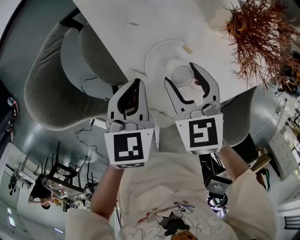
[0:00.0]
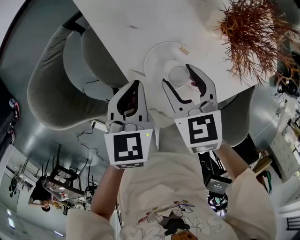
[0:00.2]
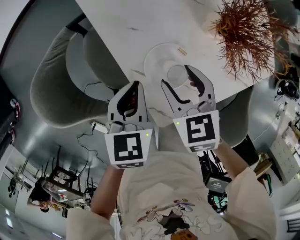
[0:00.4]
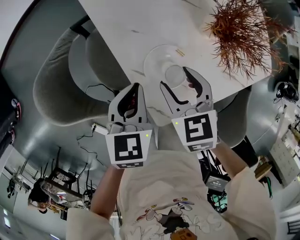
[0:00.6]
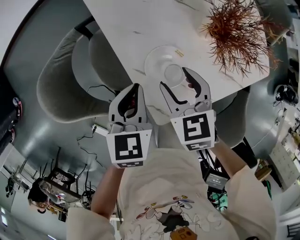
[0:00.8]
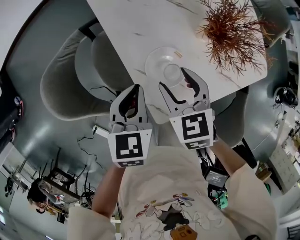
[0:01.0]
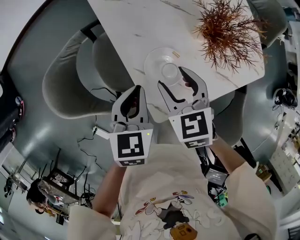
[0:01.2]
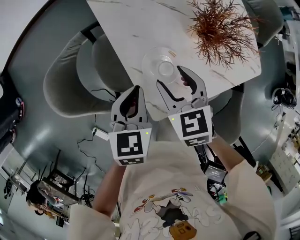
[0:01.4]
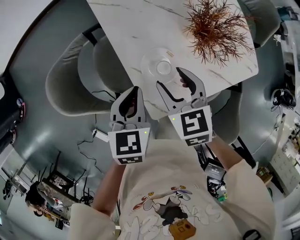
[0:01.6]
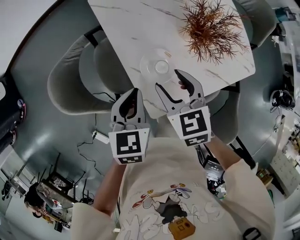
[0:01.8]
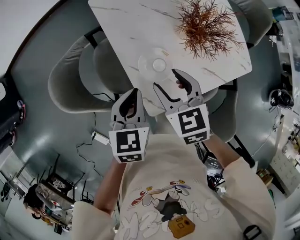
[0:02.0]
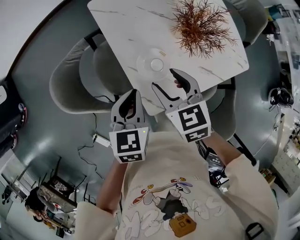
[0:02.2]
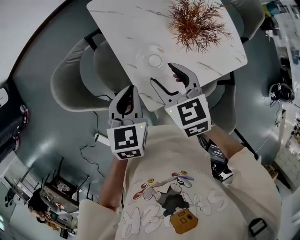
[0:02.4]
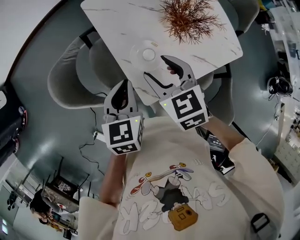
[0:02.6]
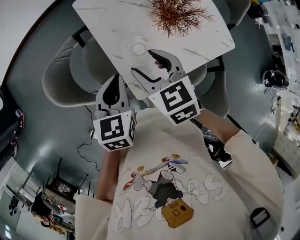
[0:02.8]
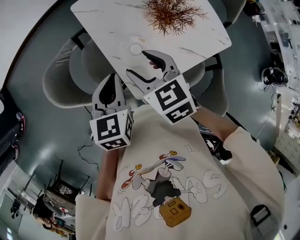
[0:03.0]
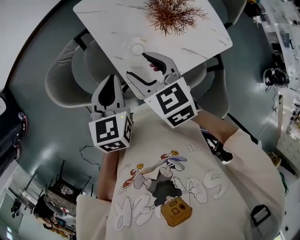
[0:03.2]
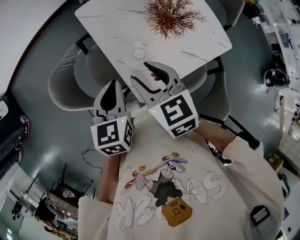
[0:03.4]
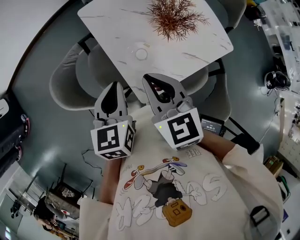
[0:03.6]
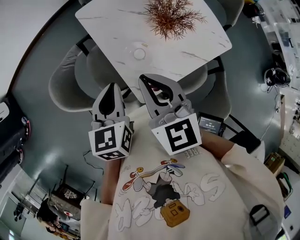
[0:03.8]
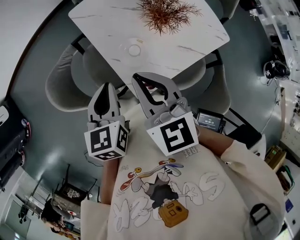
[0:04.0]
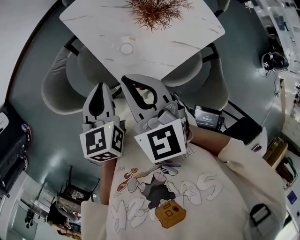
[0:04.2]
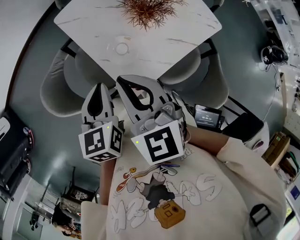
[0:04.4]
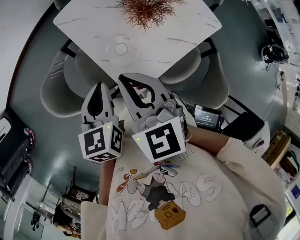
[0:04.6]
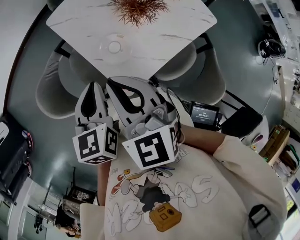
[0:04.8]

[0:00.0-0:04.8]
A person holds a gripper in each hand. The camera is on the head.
0:00.0 to 0:01.6: Both grippers travel together upward, roughly 10 cm.
0:01.6 to 0:03.2: Both grippers travel together upward, about 10 cm.
0:03.2 to 0:04.8: The right gripper is displaced upward by about 10 cm, changes its angle by approximately 20 degrees, and closes.

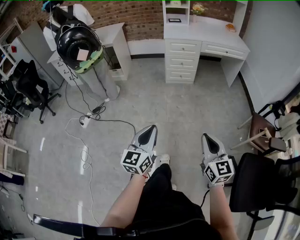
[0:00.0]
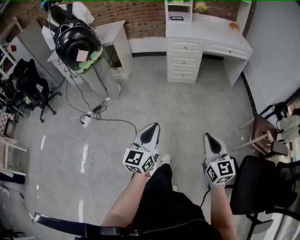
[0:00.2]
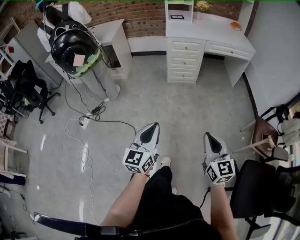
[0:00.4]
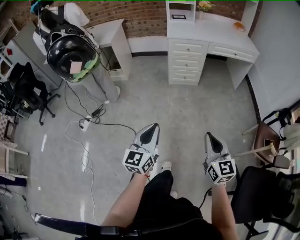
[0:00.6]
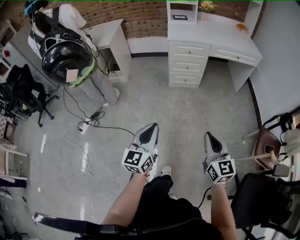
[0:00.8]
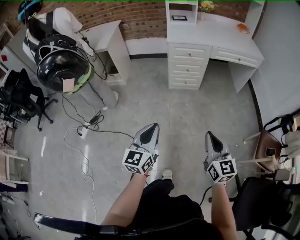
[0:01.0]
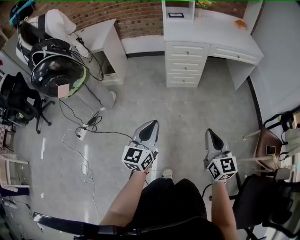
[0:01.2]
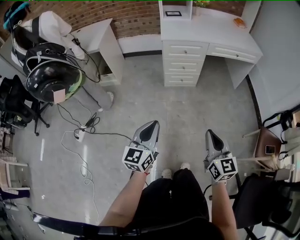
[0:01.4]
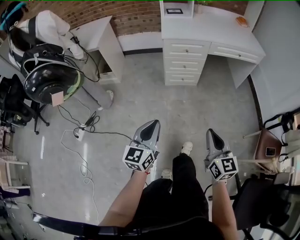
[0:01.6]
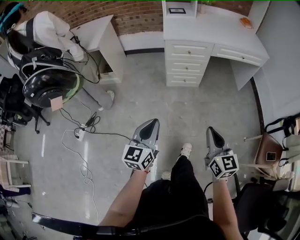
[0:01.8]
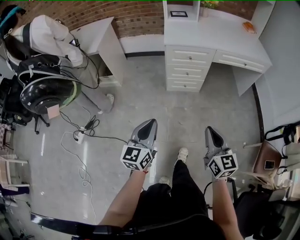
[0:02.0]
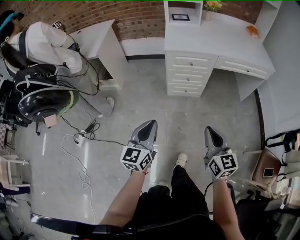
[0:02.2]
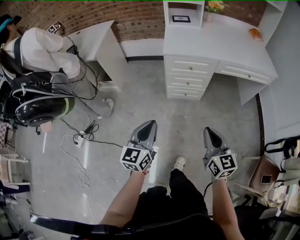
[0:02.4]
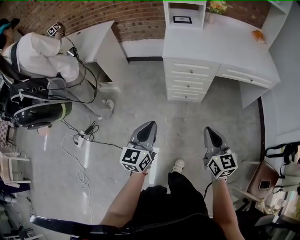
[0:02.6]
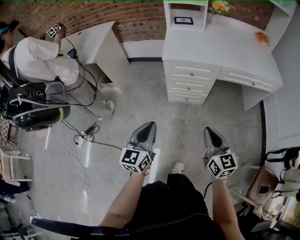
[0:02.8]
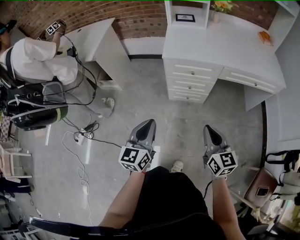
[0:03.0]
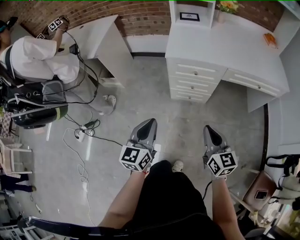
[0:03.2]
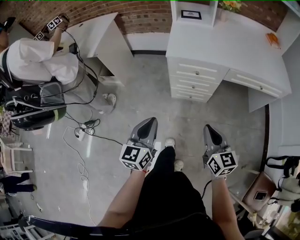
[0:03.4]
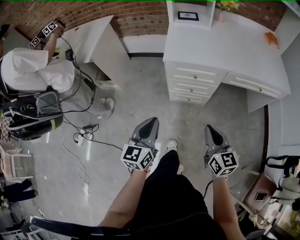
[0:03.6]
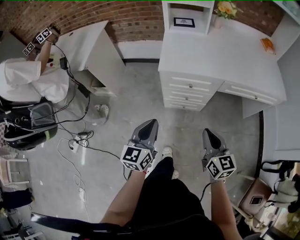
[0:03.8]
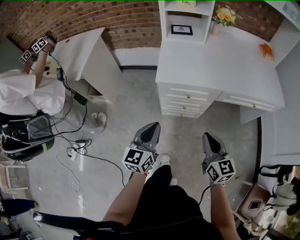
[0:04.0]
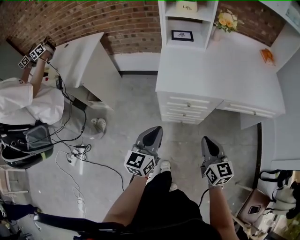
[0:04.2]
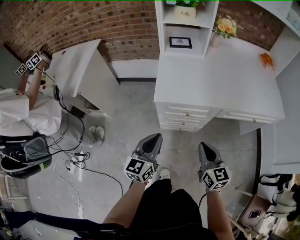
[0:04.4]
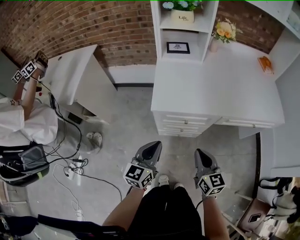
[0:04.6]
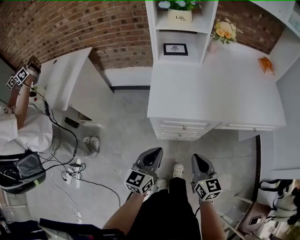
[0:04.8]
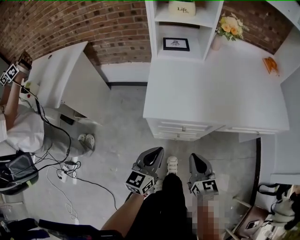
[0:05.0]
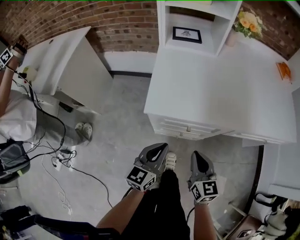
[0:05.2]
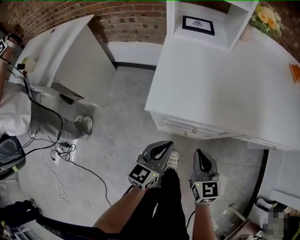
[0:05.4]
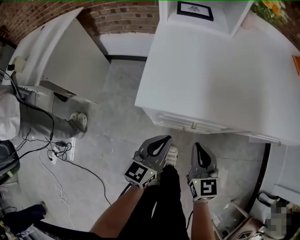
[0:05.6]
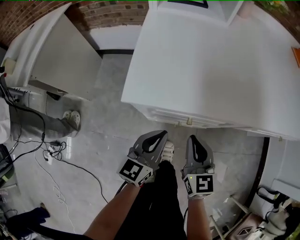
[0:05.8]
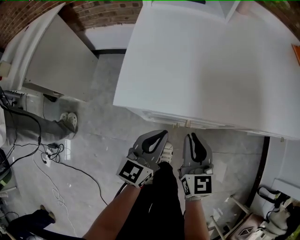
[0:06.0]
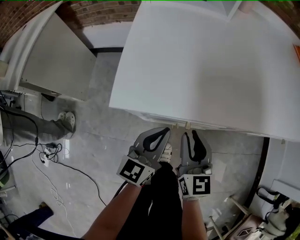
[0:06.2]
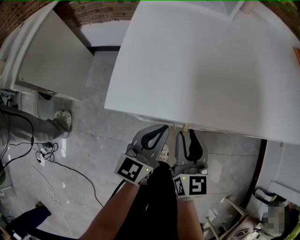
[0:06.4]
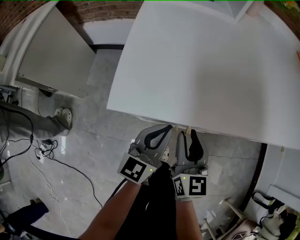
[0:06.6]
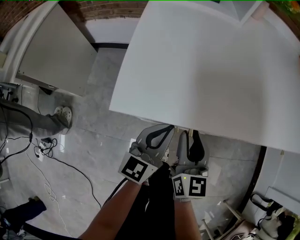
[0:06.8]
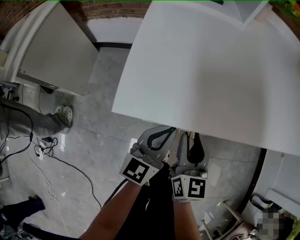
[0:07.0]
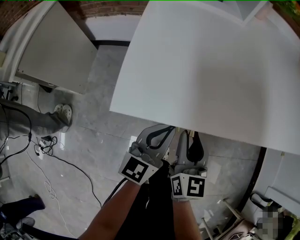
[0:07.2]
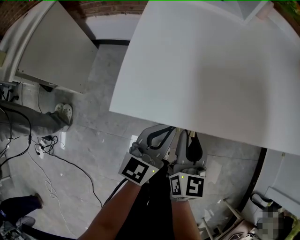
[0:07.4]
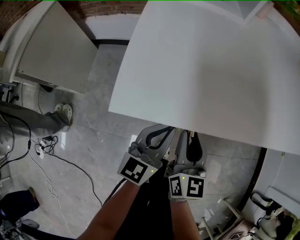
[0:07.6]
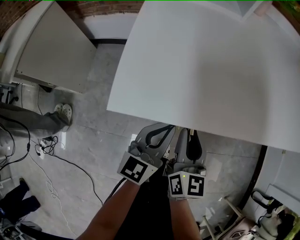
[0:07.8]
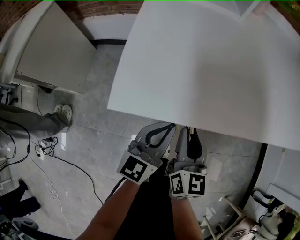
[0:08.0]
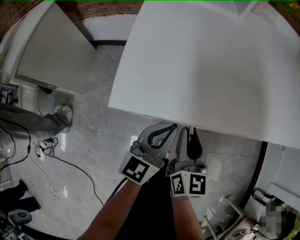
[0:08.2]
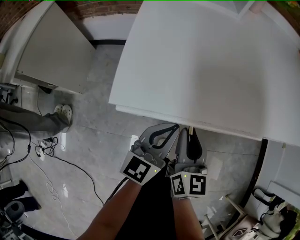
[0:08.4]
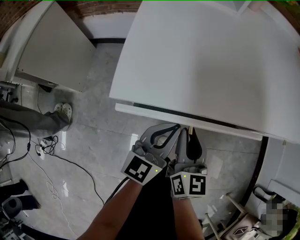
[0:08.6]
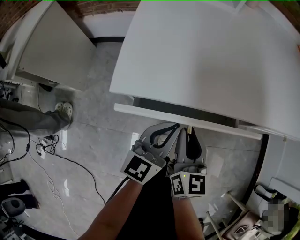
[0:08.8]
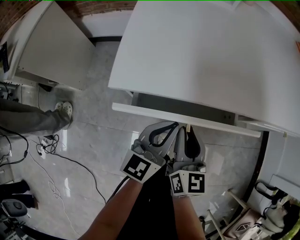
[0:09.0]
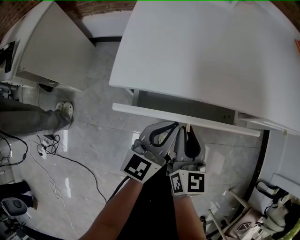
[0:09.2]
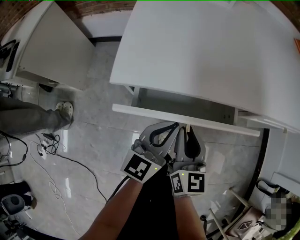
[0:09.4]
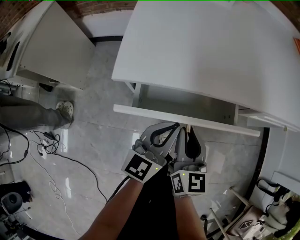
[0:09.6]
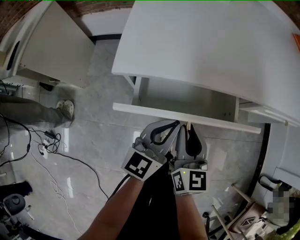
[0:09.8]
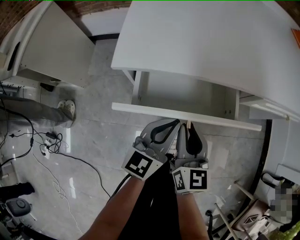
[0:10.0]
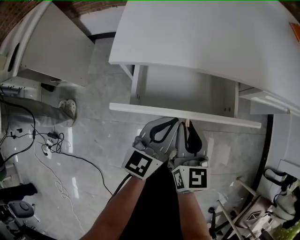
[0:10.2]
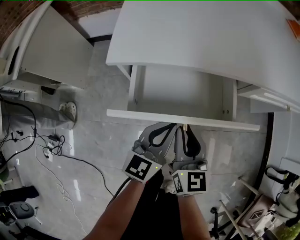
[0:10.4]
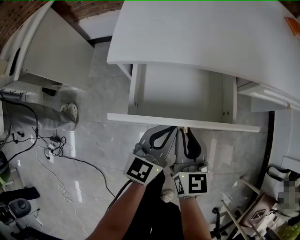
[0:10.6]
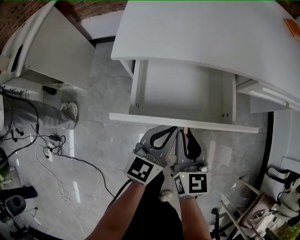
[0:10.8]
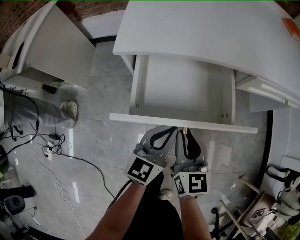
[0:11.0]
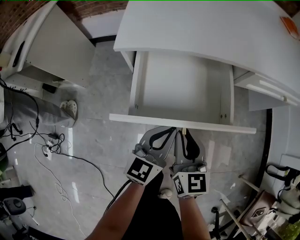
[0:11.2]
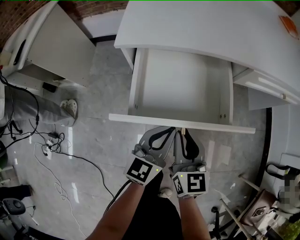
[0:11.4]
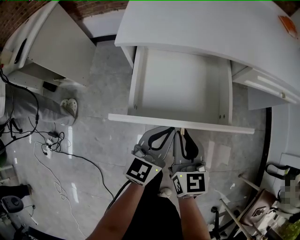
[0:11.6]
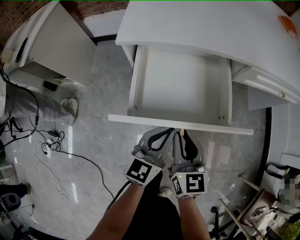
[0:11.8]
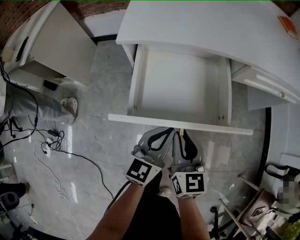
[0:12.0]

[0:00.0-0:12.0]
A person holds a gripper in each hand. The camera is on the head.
0:00.0 to 0:01.6: Both grippers travel together forward, approximately 30 cm.
0:01.6 to 0:03.0: The two grippers go about 30 cm forward.
0:03.0 to 0:04.4: The two grippers go about 20 cm forward.
0:04.4 to 0:06.0: The grippers both shift downward and forward by some 25 cm.
0:06.0 to 0:07.6: The grippers move only a little.
0:07.6 to 0:09.0: The right gripper changes place by approximately 5 cm. Meanwhile the left gripper shifts by roughly 5 cm.
0:09.0 to 0:10.4: The two grippers go roughly 5 cm backward.
0:10.4 to 0:12.0: The two grippers go approximately 10 cm backward.

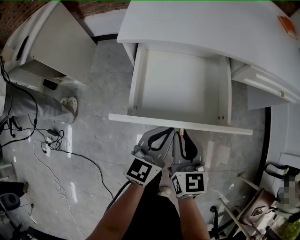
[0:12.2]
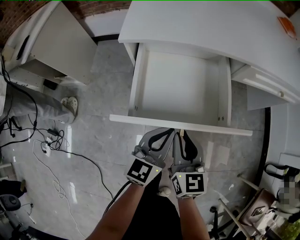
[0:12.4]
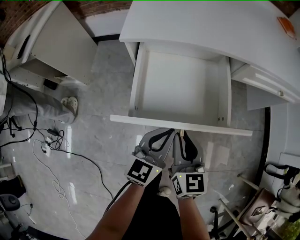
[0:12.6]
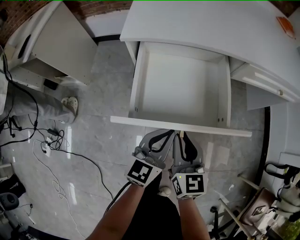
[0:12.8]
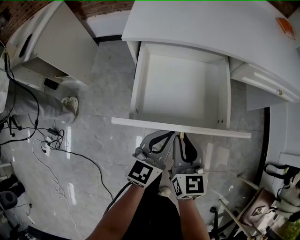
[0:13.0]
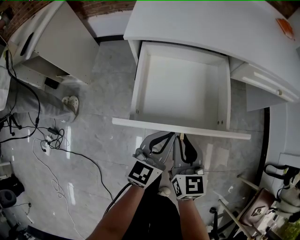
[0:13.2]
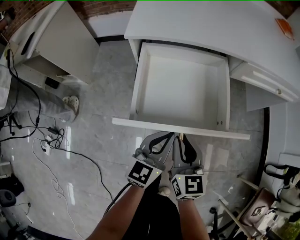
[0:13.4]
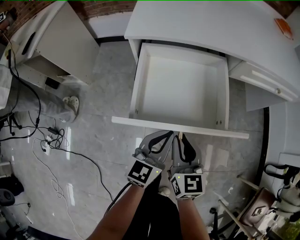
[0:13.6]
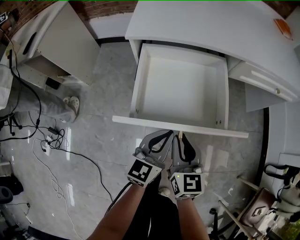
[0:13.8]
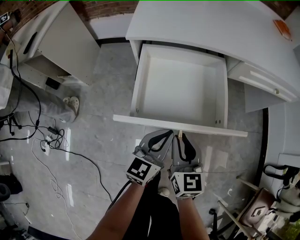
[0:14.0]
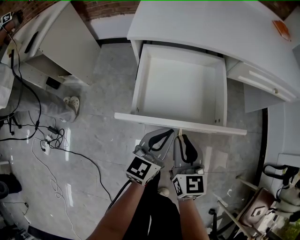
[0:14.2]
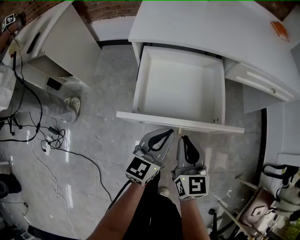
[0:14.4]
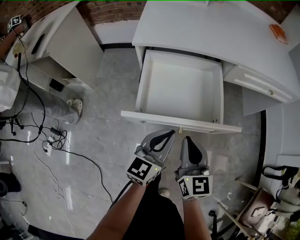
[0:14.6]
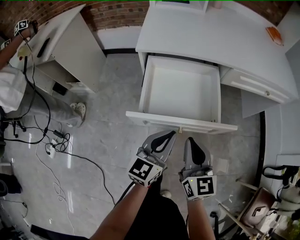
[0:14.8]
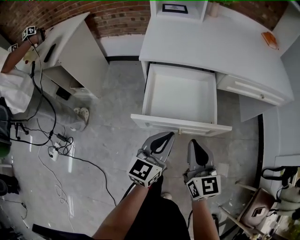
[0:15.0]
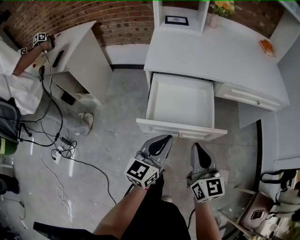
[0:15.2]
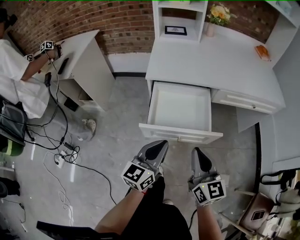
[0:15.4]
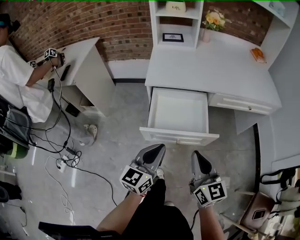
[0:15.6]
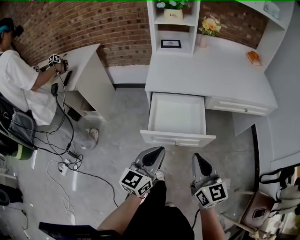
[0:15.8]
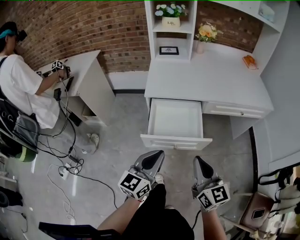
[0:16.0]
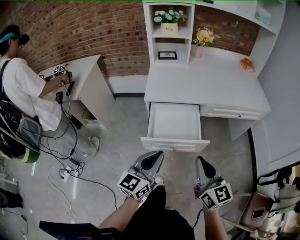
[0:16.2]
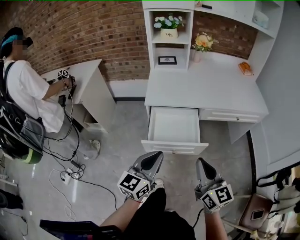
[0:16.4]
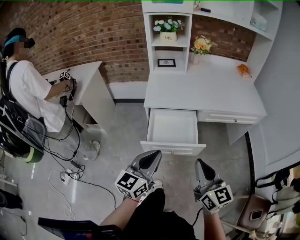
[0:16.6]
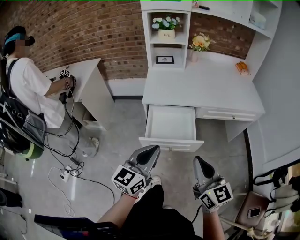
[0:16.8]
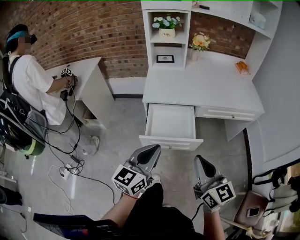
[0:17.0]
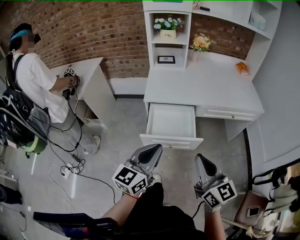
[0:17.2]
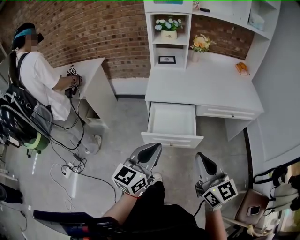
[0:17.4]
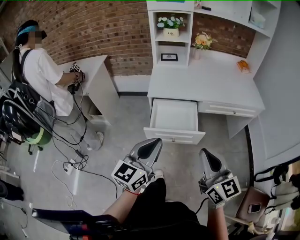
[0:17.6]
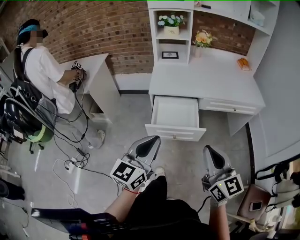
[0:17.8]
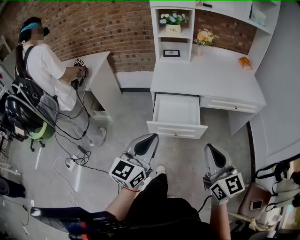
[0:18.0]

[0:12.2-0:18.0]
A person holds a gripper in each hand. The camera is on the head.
0:12.2 to 0:13.6: There are only small adjustments of the grippers.
0:13.6 to 0:15.0: The two grippers go roughly 10 cm upward.
0:15.0 to 0:16.6: The two grippers go some 25 cm upward.
0:16.6 to 0:18.0: The grippers both shift backward and upward by some 10 cm.

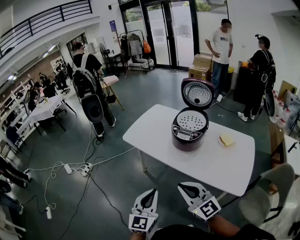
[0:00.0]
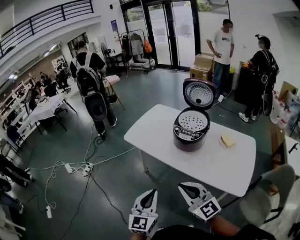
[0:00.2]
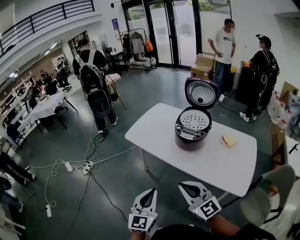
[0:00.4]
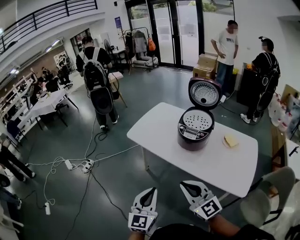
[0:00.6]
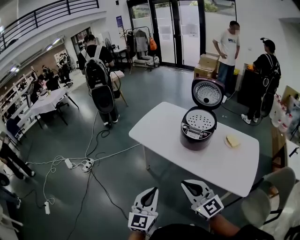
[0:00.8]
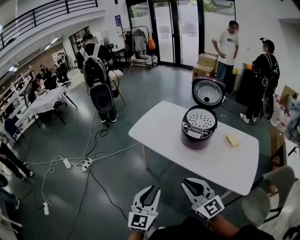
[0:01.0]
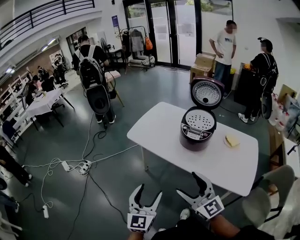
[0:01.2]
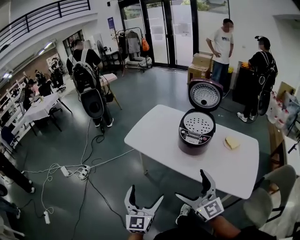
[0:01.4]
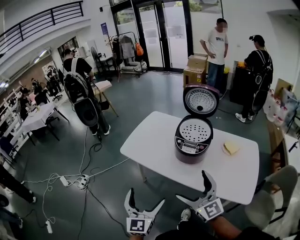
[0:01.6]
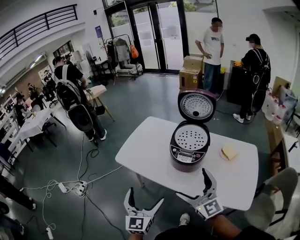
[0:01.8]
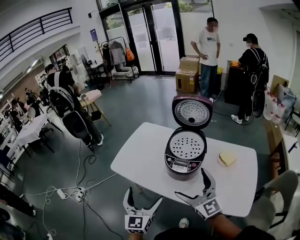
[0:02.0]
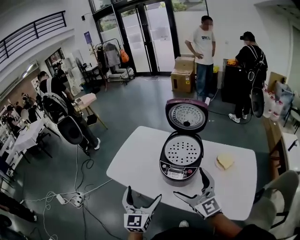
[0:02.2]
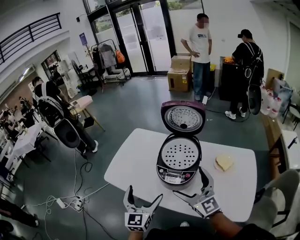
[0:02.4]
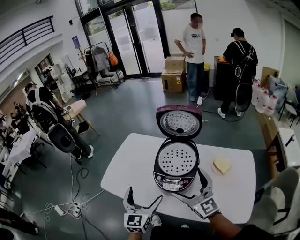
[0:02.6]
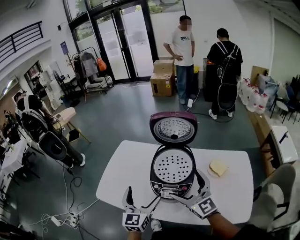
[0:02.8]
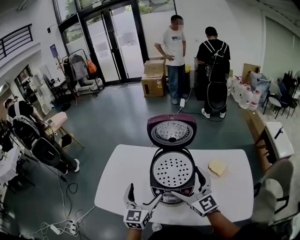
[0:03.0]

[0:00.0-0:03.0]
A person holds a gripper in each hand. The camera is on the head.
0:00.0 to 0:01.6: The two grippers go about 15 cm forward. The right gripper opens up. The left gripper opens up.
0:01.6 to 0:03.0: Both grippers move forward and to the right, some 35 cm. The left gripper rotates about 20 degrees.
